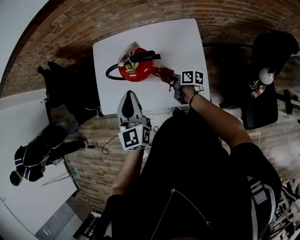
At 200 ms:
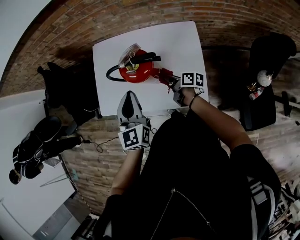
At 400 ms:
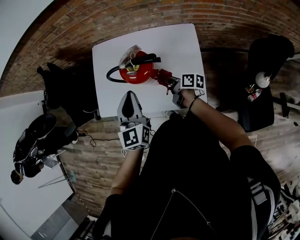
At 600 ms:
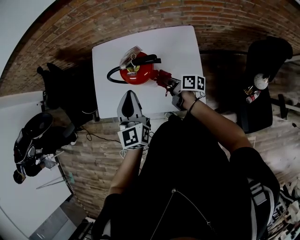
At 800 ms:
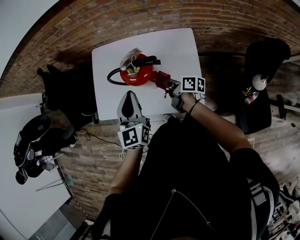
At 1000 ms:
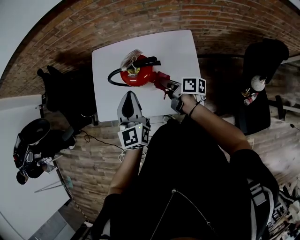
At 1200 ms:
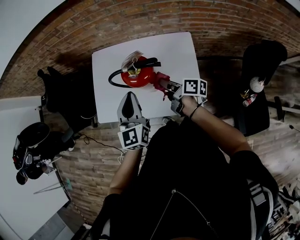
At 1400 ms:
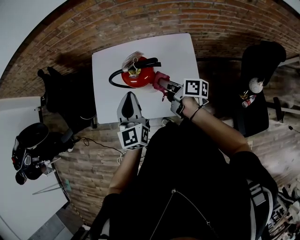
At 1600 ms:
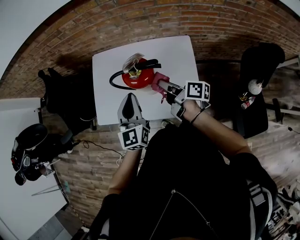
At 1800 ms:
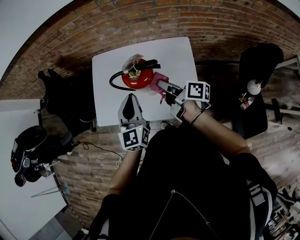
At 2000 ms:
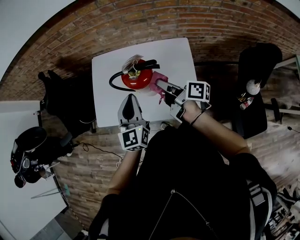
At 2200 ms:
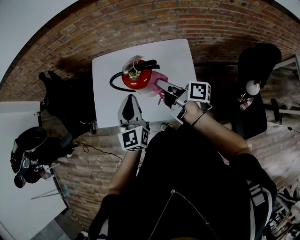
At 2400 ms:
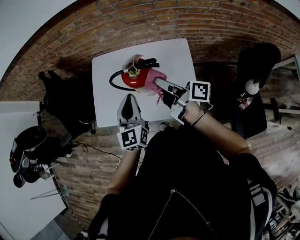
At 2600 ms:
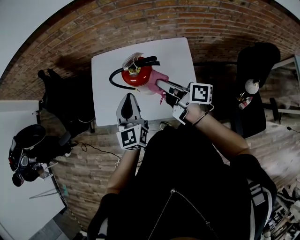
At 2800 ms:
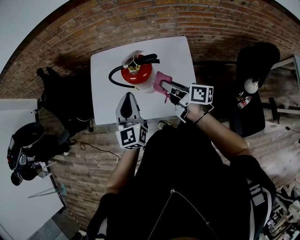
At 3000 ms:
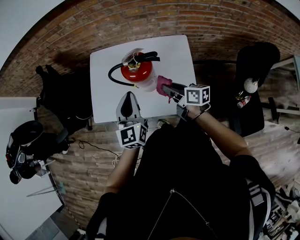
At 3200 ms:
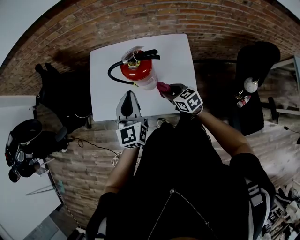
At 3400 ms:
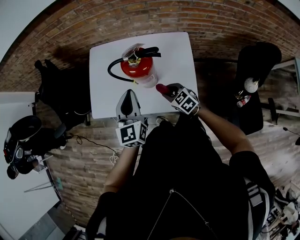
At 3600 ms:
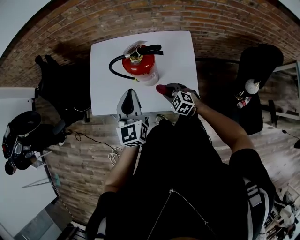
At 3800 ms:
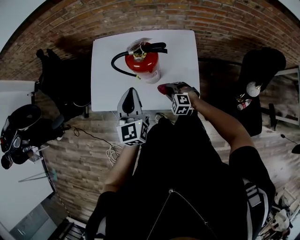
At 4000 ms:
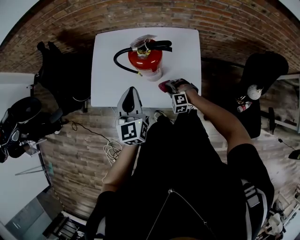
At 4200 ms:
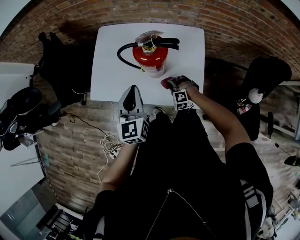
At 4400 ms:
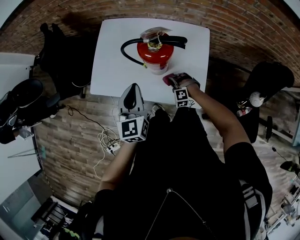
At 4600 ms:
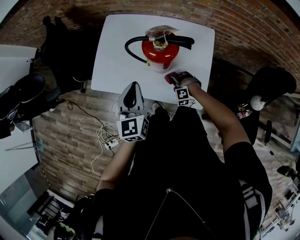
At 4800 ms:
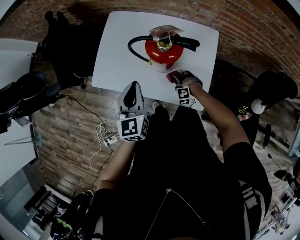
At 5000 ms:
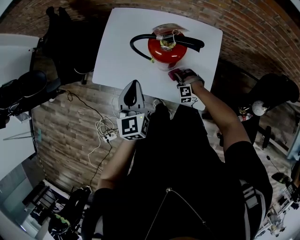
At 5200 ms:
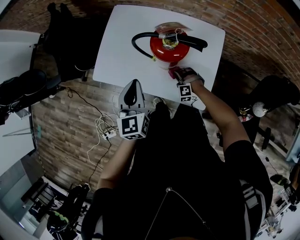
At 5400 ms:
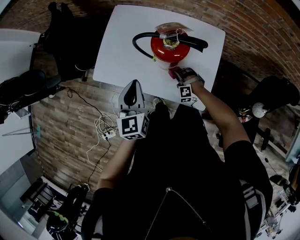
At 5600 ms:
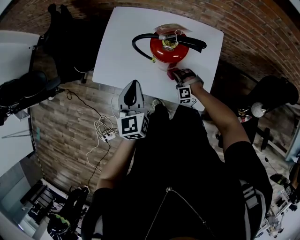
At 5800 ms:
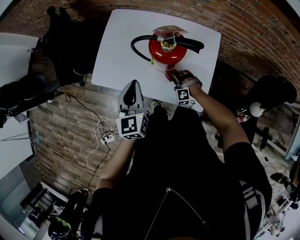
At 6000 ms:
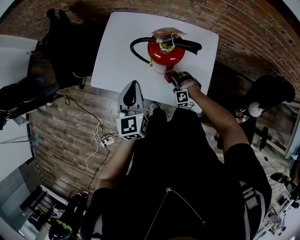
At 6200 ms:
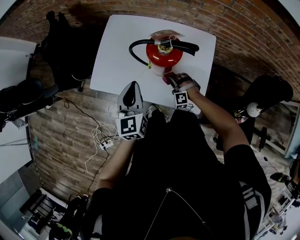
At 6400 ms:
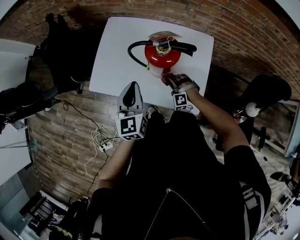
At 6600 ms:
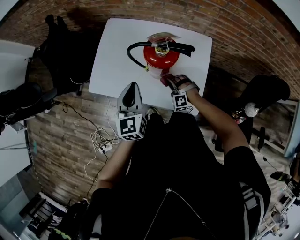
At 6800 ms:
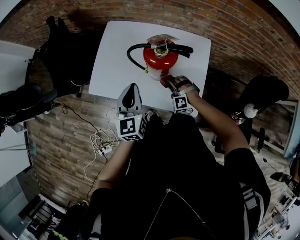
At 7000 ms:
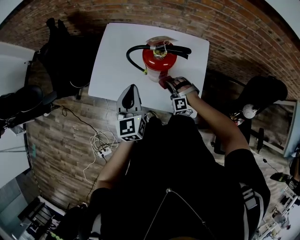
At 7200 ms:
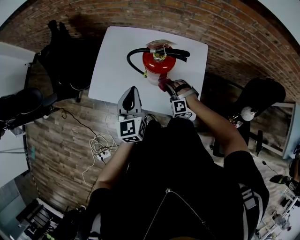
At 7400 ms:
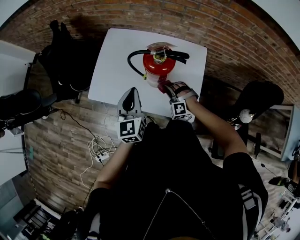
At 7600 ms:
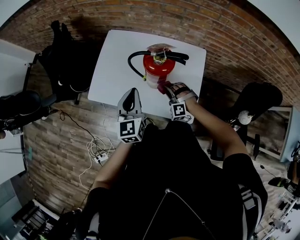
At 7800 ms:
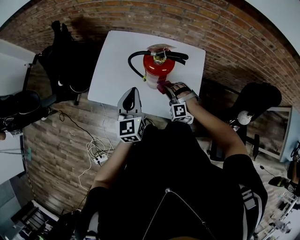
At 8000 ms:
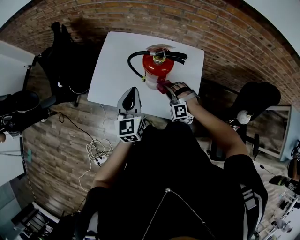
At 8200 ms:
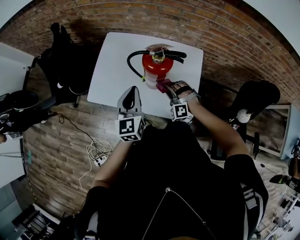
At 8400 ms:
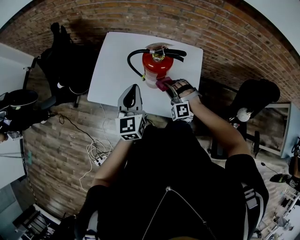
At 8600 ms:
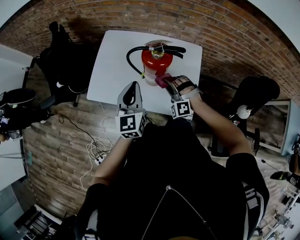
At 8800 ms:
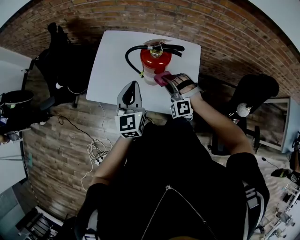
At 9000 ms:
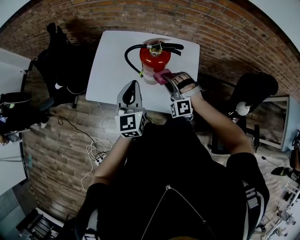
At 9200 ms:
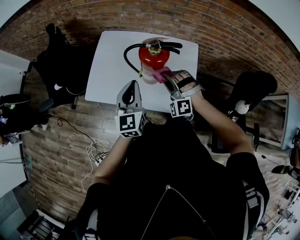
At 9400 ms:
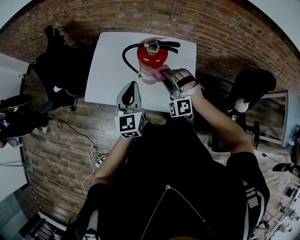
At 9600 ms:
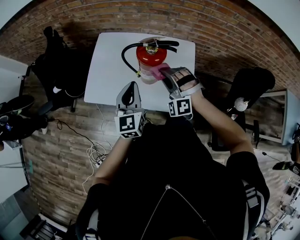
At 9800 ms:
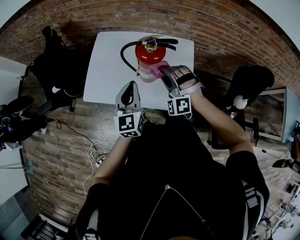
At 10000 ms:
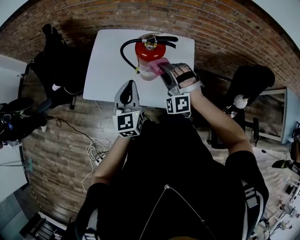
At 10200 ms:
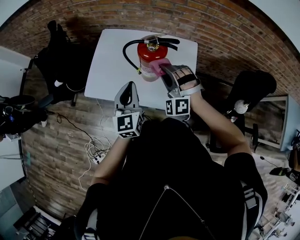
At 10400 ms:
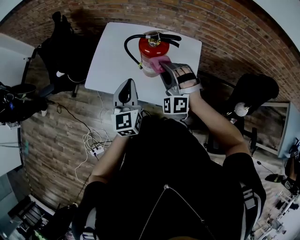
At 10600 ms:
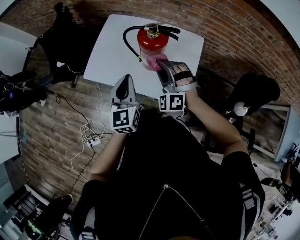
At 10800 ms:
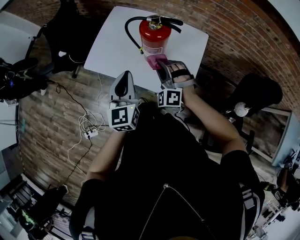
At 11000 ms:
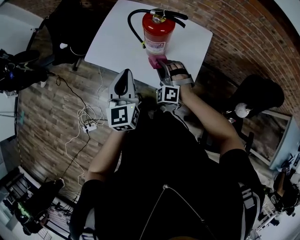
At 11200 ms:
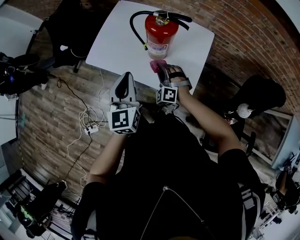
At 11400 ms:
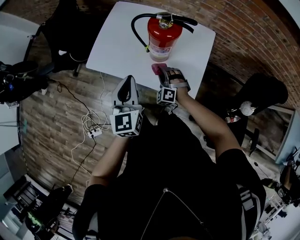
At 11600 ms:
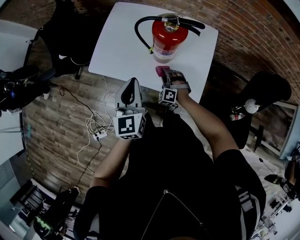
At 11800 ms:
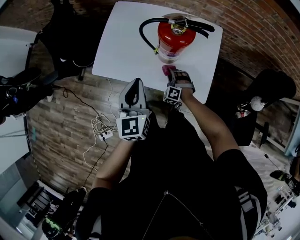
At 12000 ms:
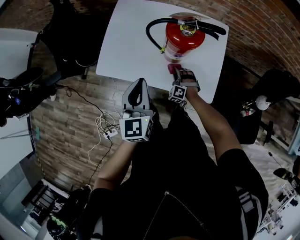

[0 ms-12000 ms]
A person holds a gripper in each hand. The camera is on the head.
0 ms to 1600 ms: The right gripper travels upward by about 20 cm.
1600 ms to 3000 ms: The right gripper goes upward and returns, some 10 cm each way, and rotates about 20 degrees.
3000 ms to 4400 ms: The right gripper moves downward, about 25 cm, and rolls counterclockwise, seen from behind, by roughly 120 degrees; the left gripper moves roughly 5 cm.
4400 ms to 6000 ms: The grippers stay close to where they were, moving slightly.
6000 ms to 7600 ms: The right gripper is displaced upward by roughly 10 cm.
7600 ms to 9000 ms: The right gripper shifts about 15 cm upward.
9000 ms to 10400 ms: The right gripper moves upward, approximately 10 cm.
10400 ms to 12000 ms: The right gripper goes approximately 35 cm downward, and changes its angle by about 30 degrees; the left gripper goes about 10 cm to the left and downward.

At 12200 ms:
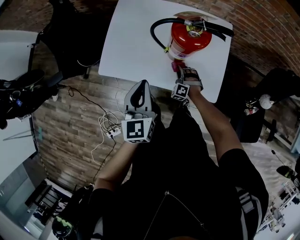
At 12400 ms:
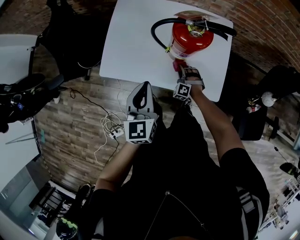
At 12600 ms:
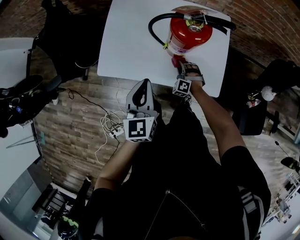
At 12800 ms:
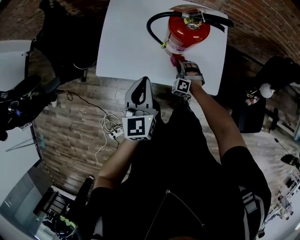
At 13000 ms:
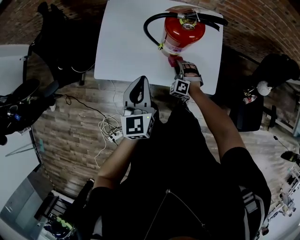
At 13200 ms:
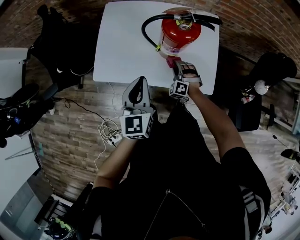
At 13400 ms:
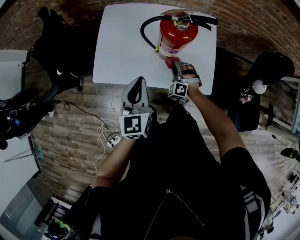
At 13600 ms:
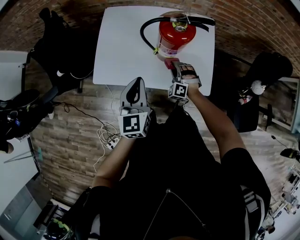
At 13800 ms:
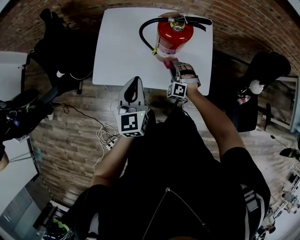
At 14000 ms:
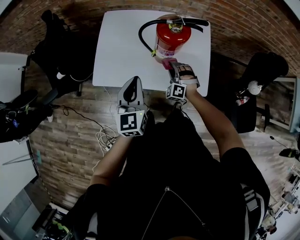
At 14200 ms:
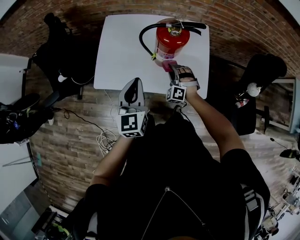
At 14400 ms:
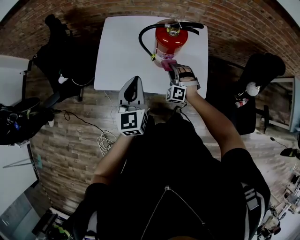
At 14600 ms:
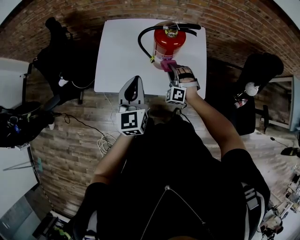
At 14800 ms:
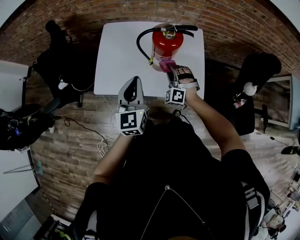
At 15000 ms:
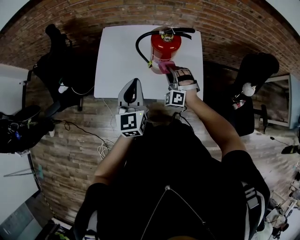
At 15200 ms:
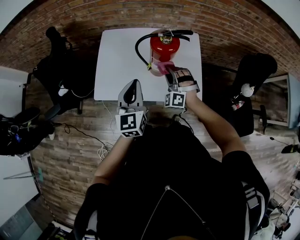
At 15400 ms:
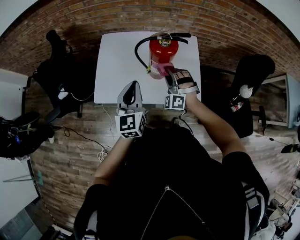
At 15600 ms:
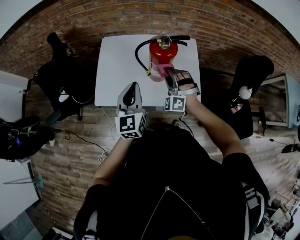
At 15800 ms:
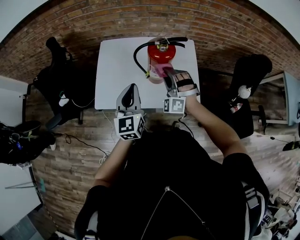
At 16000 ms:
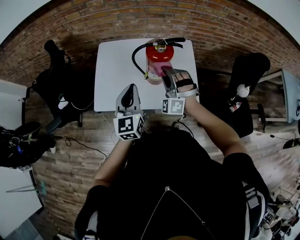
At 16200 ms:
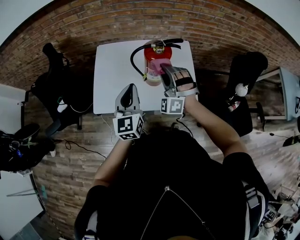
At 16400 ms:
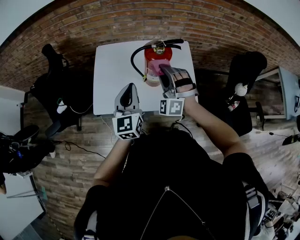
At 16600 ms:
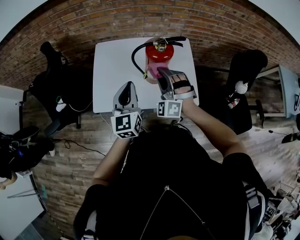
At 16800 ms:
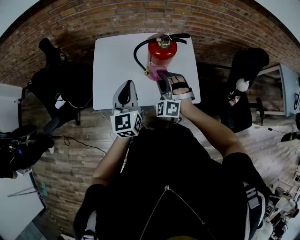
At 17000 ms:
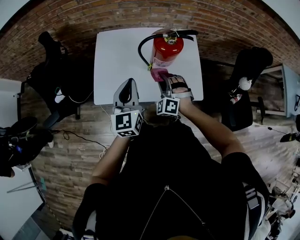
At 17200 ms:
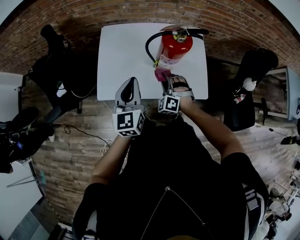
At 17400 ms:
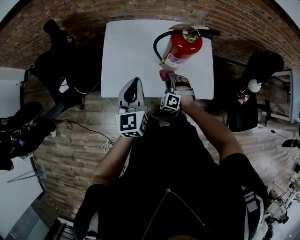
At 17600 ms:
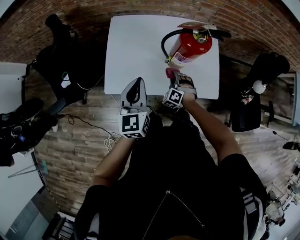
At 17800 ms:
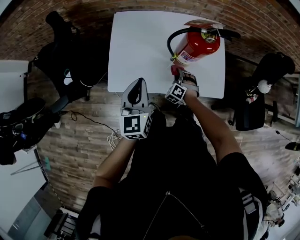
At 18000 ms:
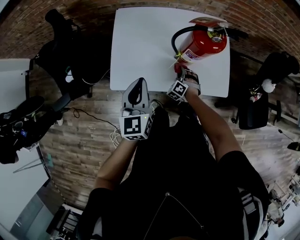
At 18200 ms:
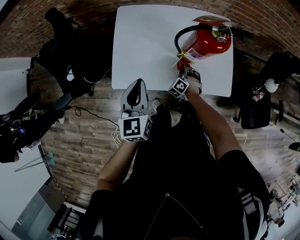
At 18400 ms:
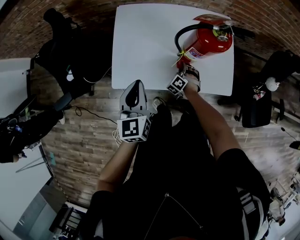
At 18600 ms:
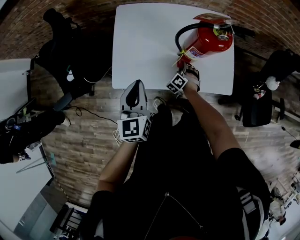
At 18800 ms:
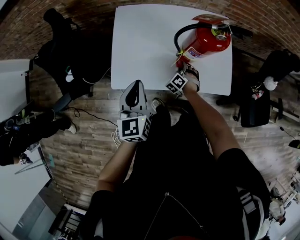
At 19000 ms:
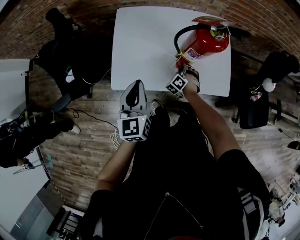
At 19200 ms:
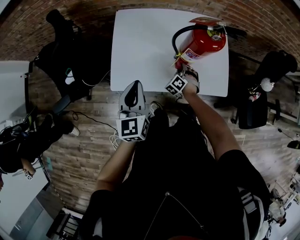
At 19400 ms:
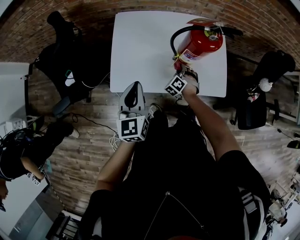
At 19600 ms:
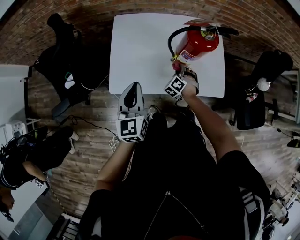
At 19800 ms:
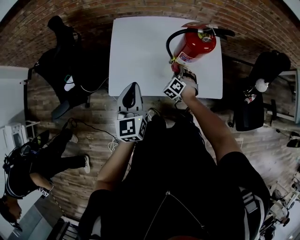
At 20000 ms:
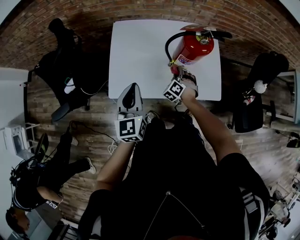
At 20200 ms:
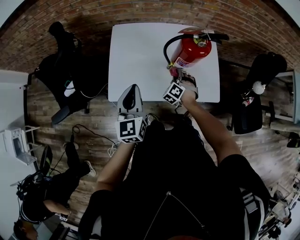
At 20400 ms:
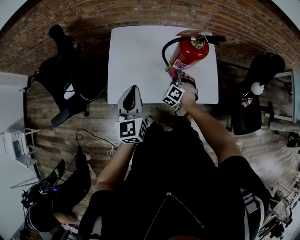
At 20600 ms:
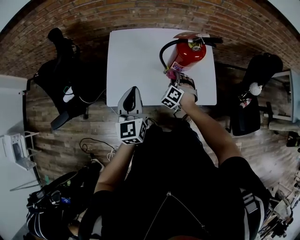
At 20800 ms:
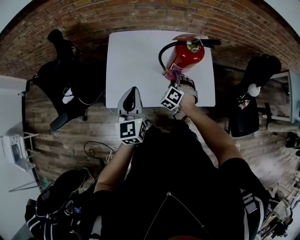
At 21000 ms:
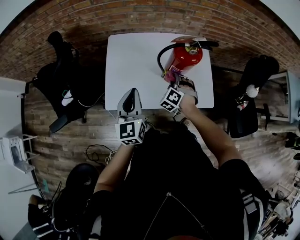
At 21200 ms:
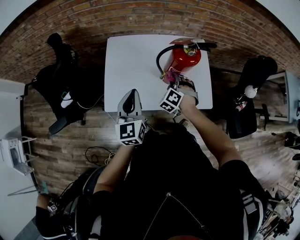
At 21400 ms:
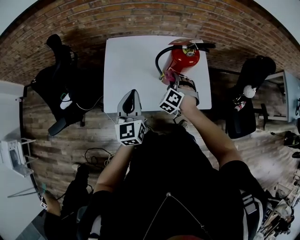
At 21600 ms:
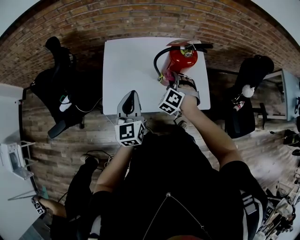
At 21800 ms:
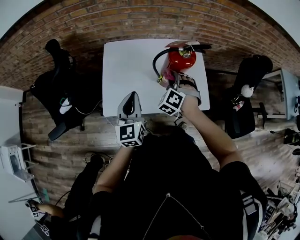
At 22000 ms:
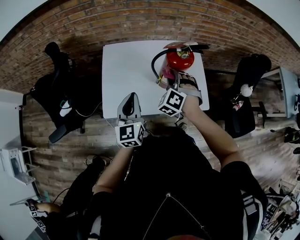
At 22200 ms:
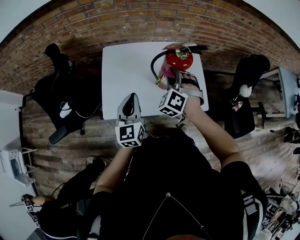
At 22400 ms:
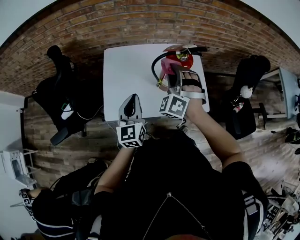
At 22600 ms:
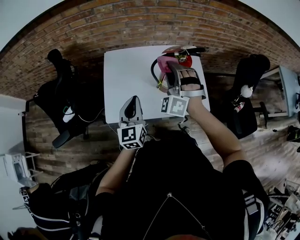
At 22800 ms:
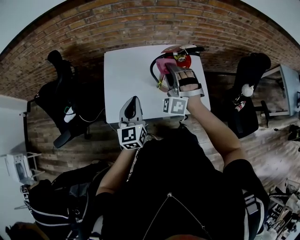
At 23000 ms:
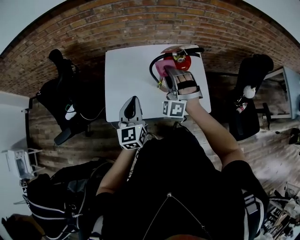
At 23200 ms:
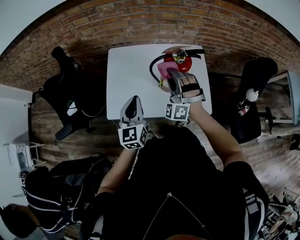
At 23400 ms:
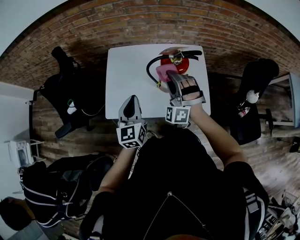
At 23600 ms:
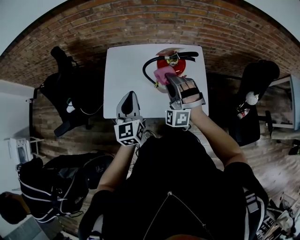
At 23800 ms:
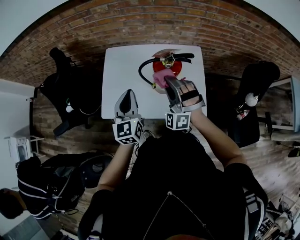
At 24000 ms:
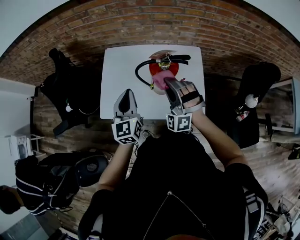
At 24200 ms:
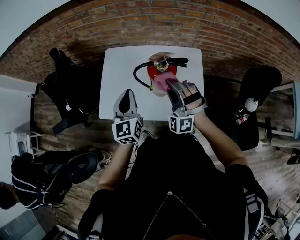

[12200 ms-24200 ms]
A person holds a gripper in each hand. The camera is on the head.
12200 ms to 13800 ms: The right gripper travels upward by roughly 10 cm.
13800 ms to 15200 ms: The left gripper goes some 5 cm upward; the right gripper shifts some 15 cm upward.
15200 ms to 16600 ms: The right gripper moves upward, some 10 cm.
16600 ms to 18200 ms: The left gripper moves to the left and downward, some 15 cm. Meanwhile the right gripper heads downward, covering some 35 cm, and tilts its fingers approximately 30 degrees downward.
18200 ms to 19800 ms: The right gripper goes approximately 10 cm upward.
19800 ms to 21200 ms: The right gripper travels upward by about 15 cm.
21200 ms to 22600 ms: The right gripper moves upward, roughly 20 cm, and tips its fingers upward by some 30 degrees.
22600 ms to 24200 ms: The right gripper heads to the right, covering some 10 cm, and rotates roughly 20 degrees, while the left gripper is displaced to the right and forward by approximately 10 cm.
